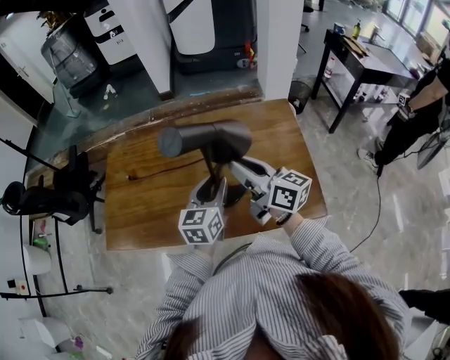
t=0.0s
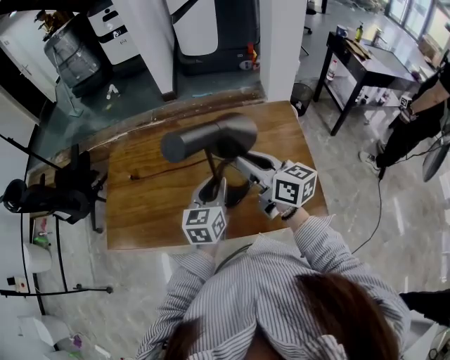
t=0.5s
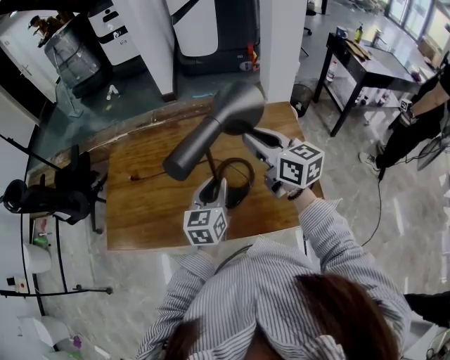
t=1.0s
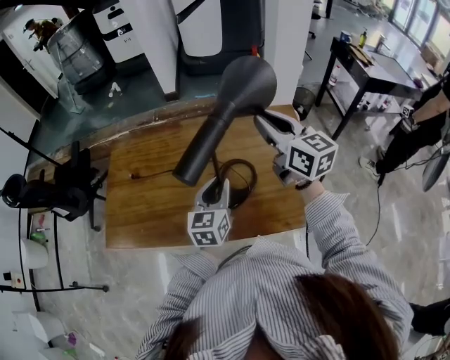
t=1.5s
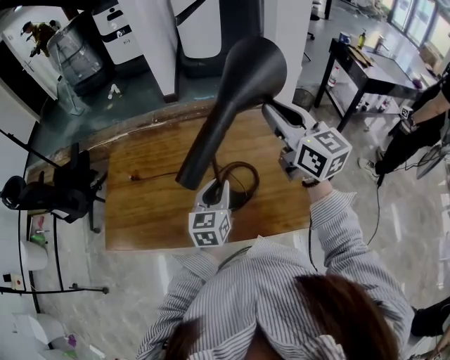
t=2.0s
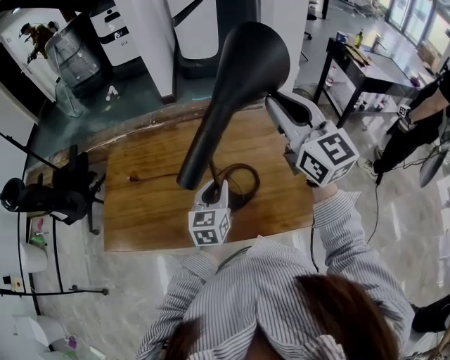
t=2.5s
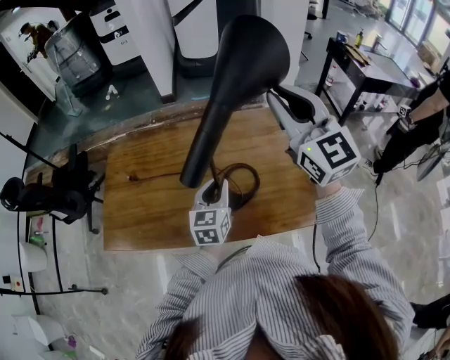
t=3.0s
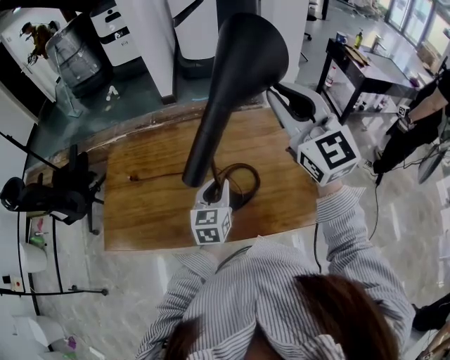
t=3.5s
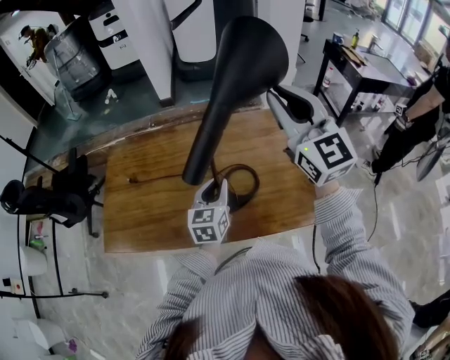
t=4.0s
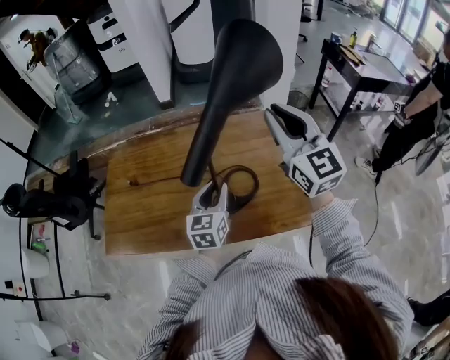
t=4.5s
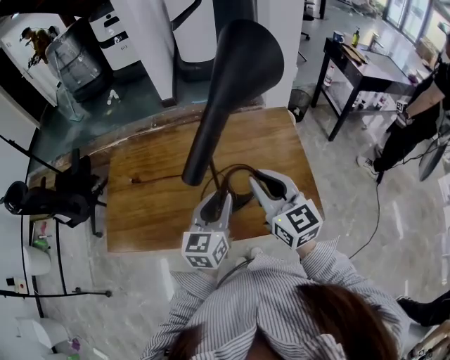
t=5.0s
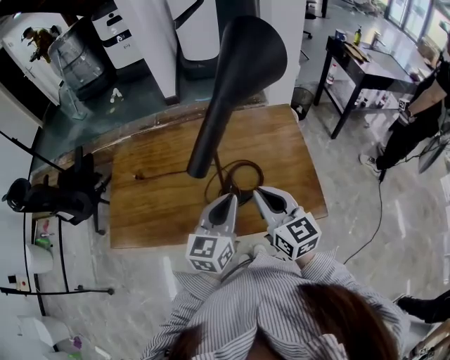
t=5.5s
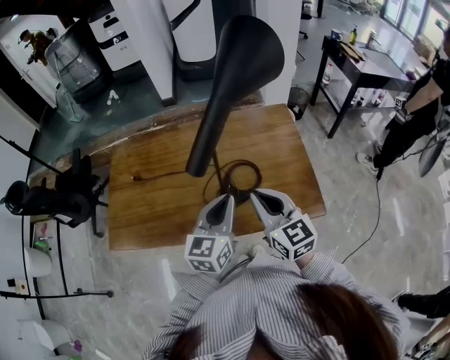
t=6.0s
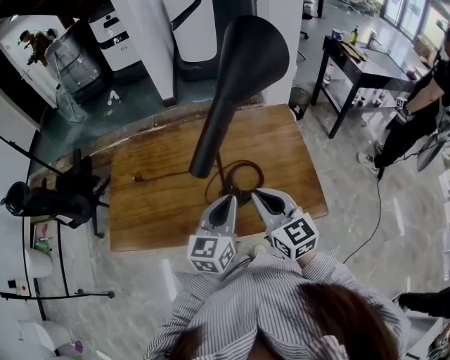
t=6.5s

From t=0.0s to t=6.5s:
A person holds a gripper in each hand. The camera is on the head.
From t=0.0s to t=2.0s: The right gripper goes approximately 20 cm upward, to the right and forward, and turns by roughly 30 degrees.
From t=4.5s to t=6.5s: The left gripper moves backward and upward, approximately 10 cm, and closes. Meanwhile the right gripper is displaced downward, backward and to the left by roughly 25 cm, and changes its angle by approximately 20 degrees.

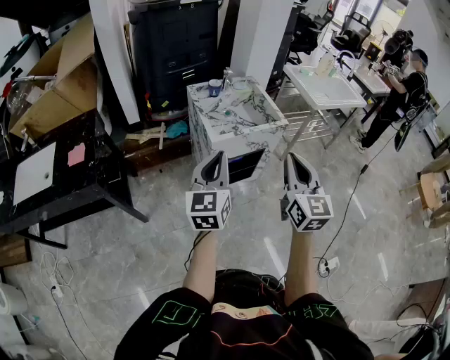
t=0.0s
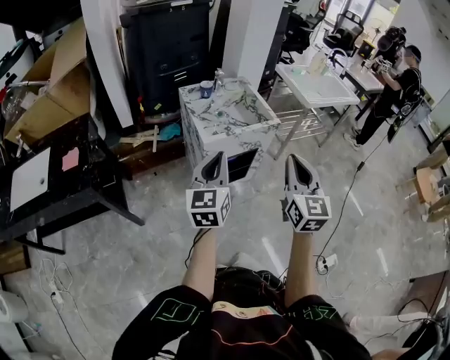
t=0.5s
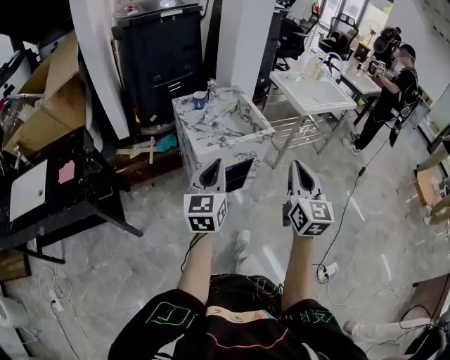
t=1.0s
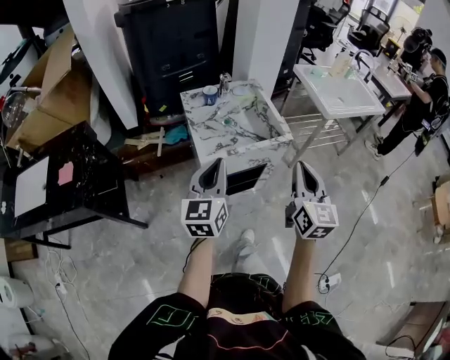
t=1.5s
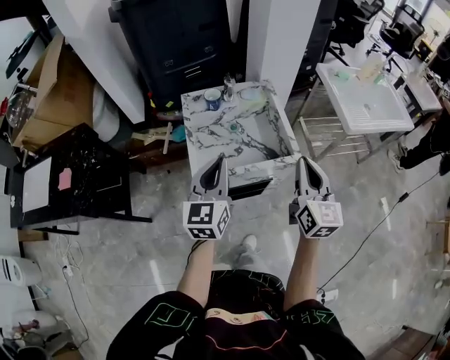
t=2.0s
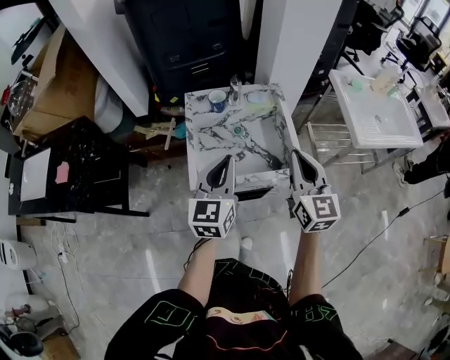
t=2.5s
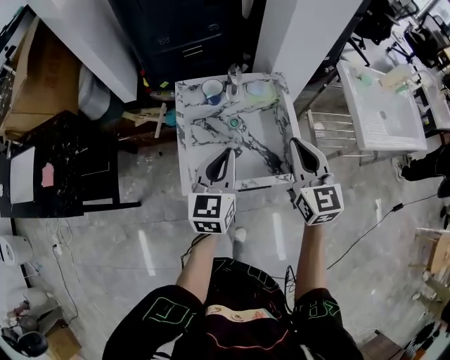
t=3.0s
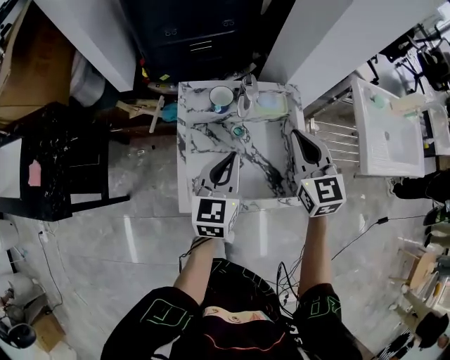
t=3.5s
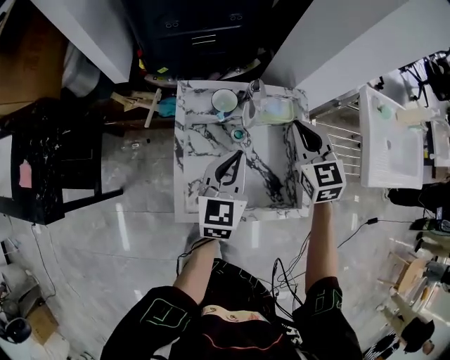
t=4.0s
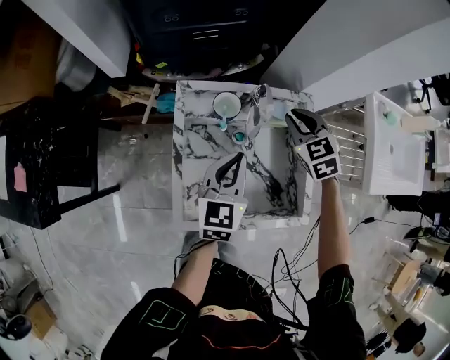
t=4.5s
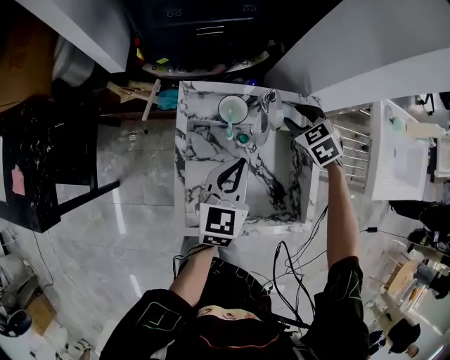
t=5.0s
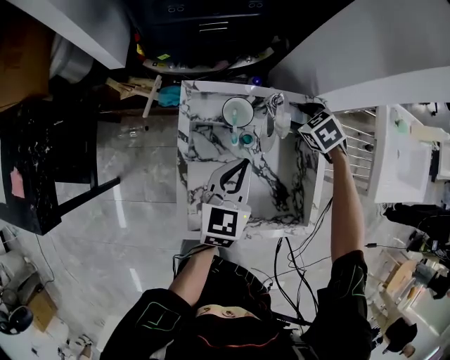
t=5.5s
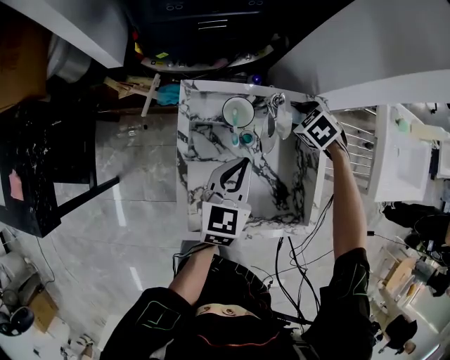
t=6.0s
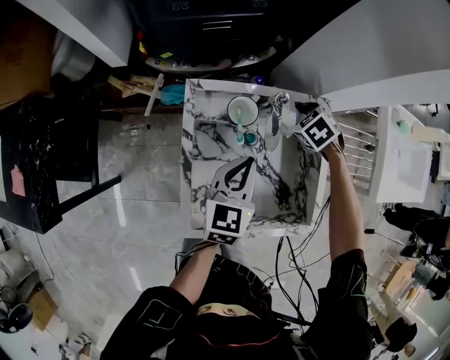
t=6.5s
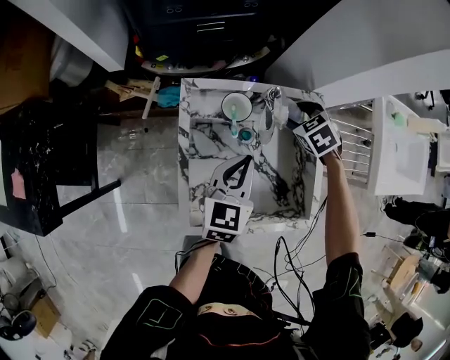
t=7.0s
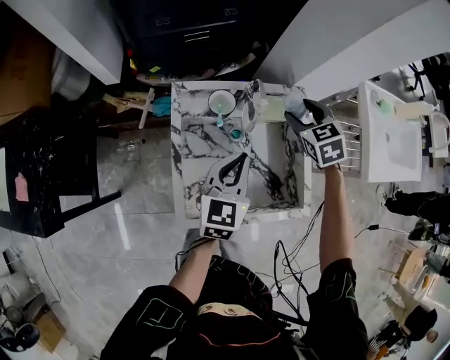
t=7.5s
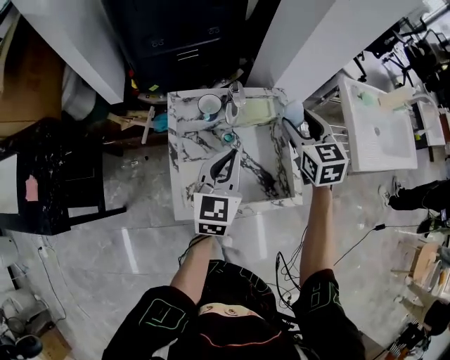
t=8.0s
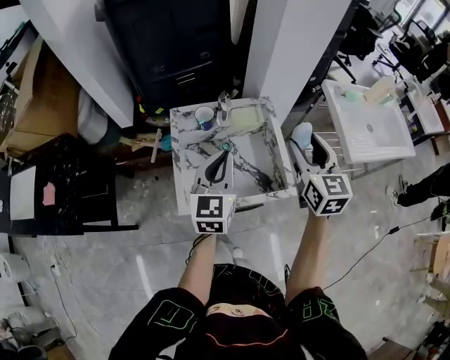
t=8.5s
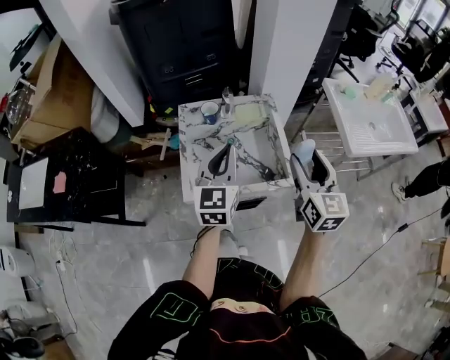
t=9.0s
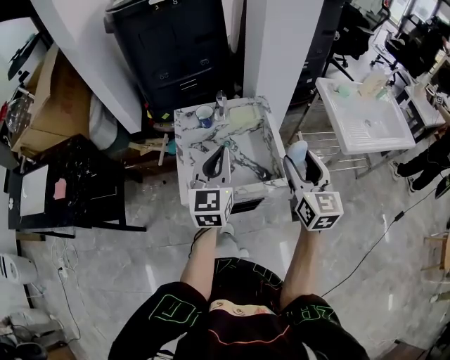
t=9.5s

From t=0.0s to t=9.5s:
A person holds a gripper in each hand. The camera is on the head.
From t=0.0s to t=2.0s: Both grippers move forward, some 30 cm.
From t=2.0s to t=4.0s: The right gripper shifts roughly 35 cm forward, and turns by some 40 degrees. Meanwhile the left gripper shifts roughly 25 cm forward and downward.
From t=4.0s to t=5.5s: The right gripper heads downward and forward, covering approximately 20 cm, tilts its fingers about 40 degrees downward, and opens up, while the left gripper is displaced downward by approximately 5 cm.
From t=5.5s to t=7.5s: The left gripper changes place by about 5 cm. Meanwhile the right gripper is displaced upward by some 10 cm, and swivels roughly 30 degrees.
From t=7.5s to t=9.5s: The left gripper shifts some 20 cm upward and backward. The right gripper travels backward and upward by approximately 35 cm, and angles its fingers upward, by roughly 40 degrees.

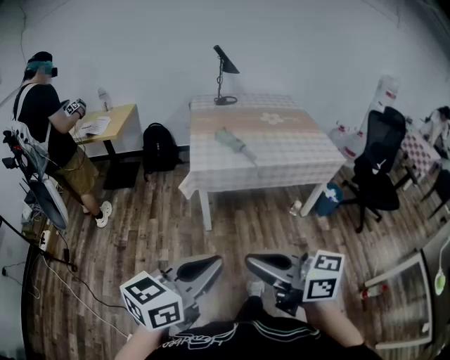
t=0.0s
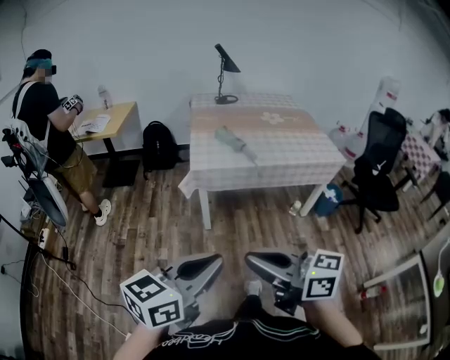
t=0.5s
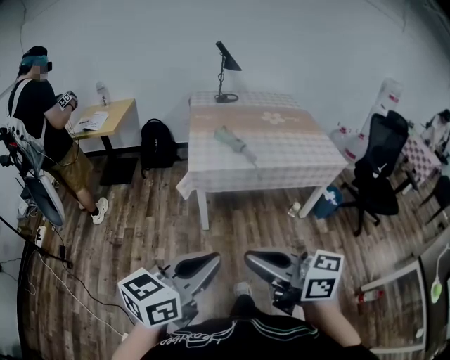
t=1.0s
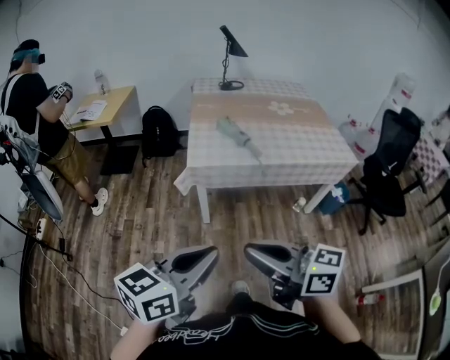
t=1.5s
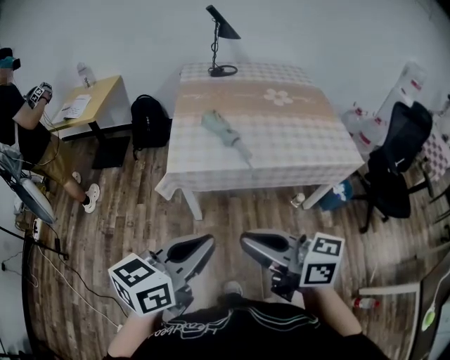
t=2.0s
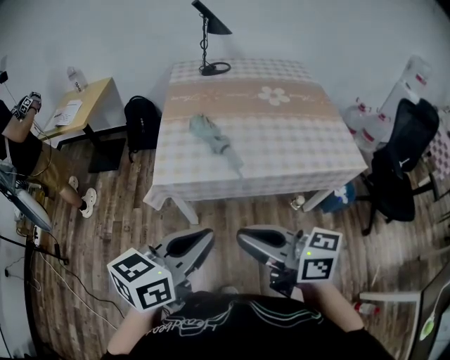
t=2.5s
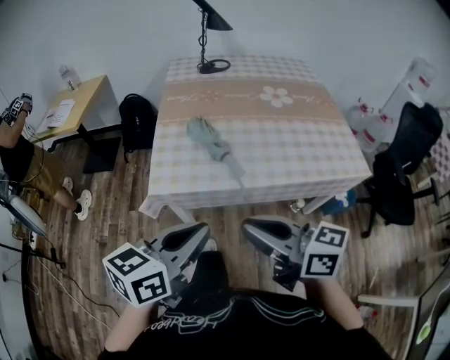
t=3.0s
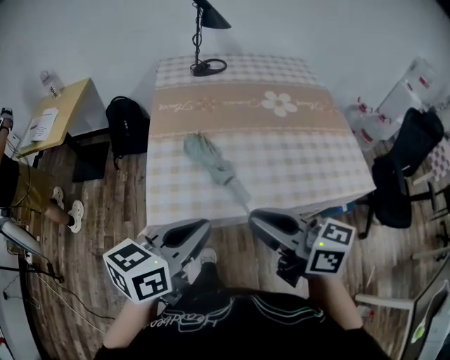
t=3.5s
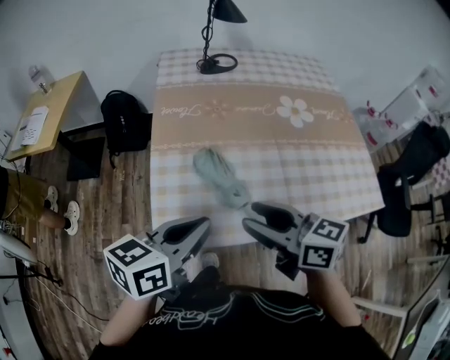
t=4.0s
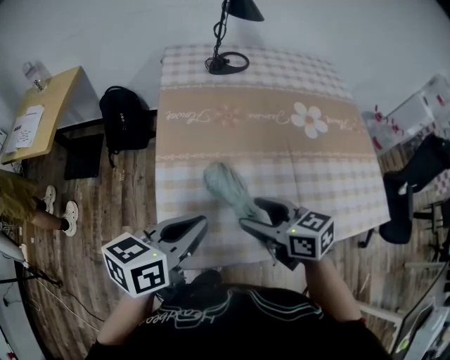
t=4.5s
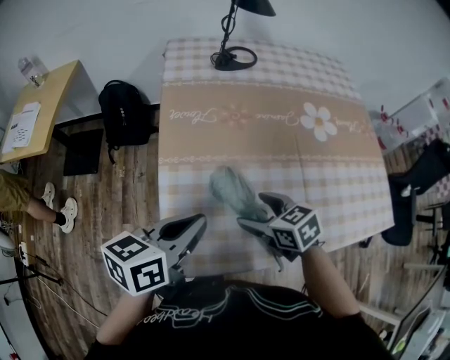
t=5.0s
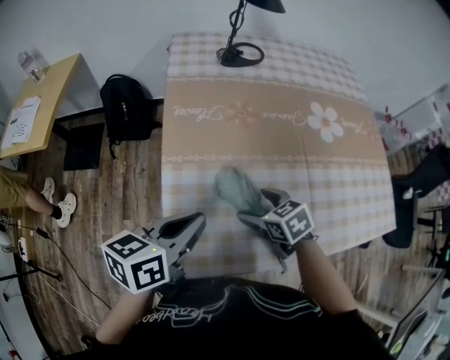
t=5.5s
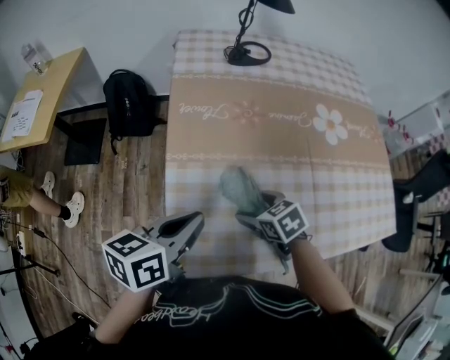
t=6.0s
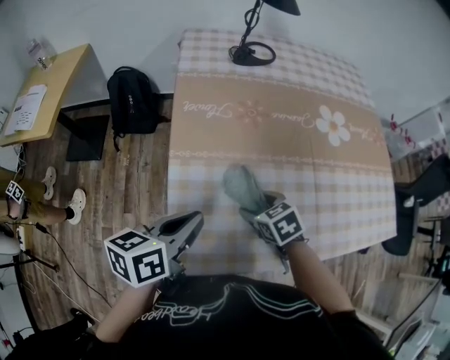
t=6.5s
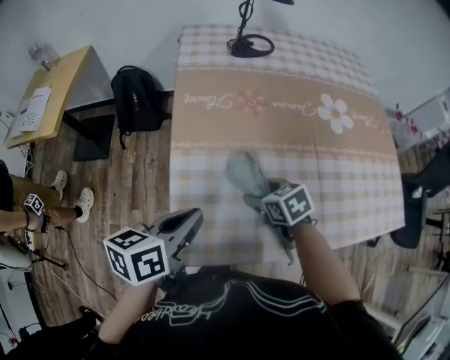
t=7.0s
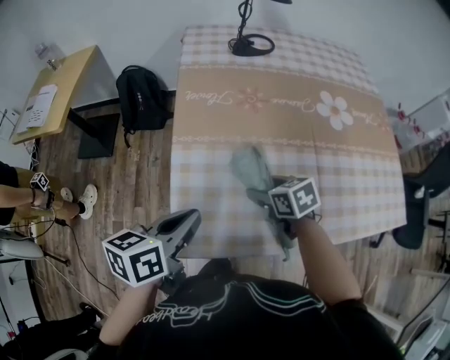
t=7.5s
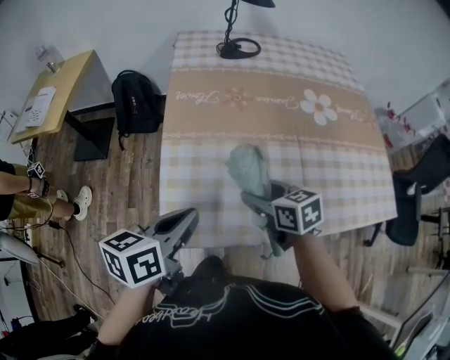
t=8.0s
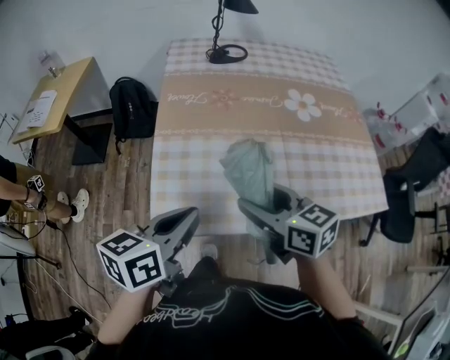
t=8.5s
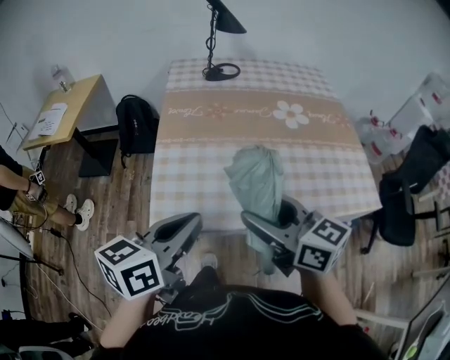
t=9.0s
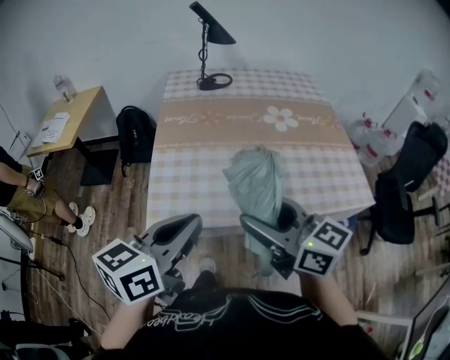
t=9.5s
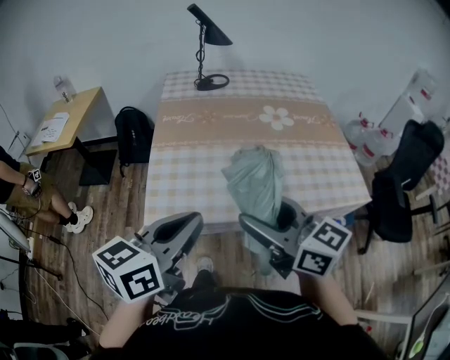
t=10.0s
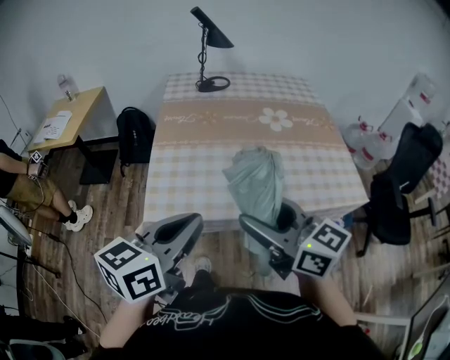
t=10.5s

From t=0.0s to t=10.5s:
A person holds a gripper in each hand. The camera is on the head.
From t=0.0s to t=2.0s: The two grippers go about 25 cm forward and to the right.
From t=2.0s to t=4.0s: The two grippers go some 40 cm forward. The right gripper opens up.
From t=4.0s to t=6.5s: The right gripper moves downward and forward, approximately 25 cm, and tips its fingers downward by roughly 40 degrees; the left gripper travels forward, downward and to the left by about 20 cm.
From t=6.5s to t=8.5s: The left gripper is displaced backward, upward and to the right by some 15 cm. The right gripper goes roughly 25 cm upward and backward, and tips its fingers upward by roughly 40 degrees.
From t=8.5s to t=10.5s: The left gripper heads backward, upward and to the right, covering roughly 20 cm, while the right gripper shifts some 20 cm backward and upward, and turns by some 20 degrees.
